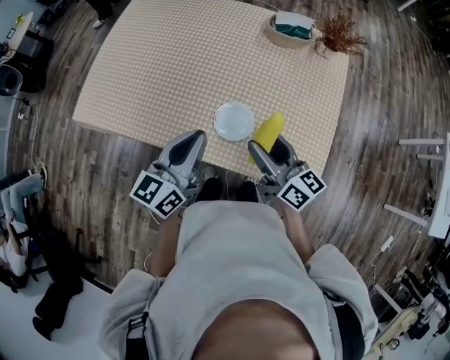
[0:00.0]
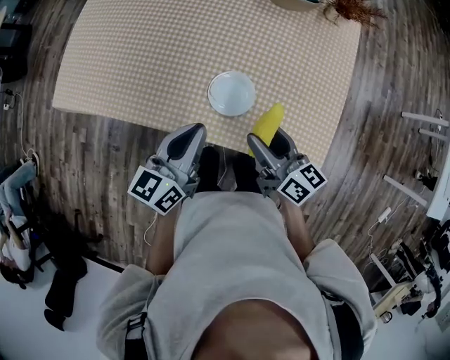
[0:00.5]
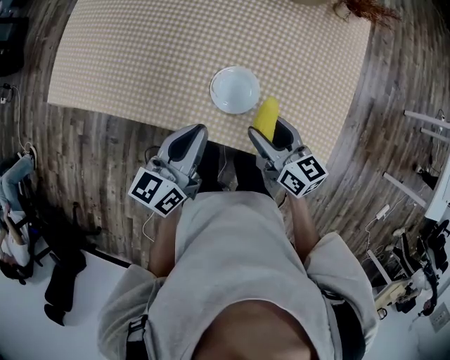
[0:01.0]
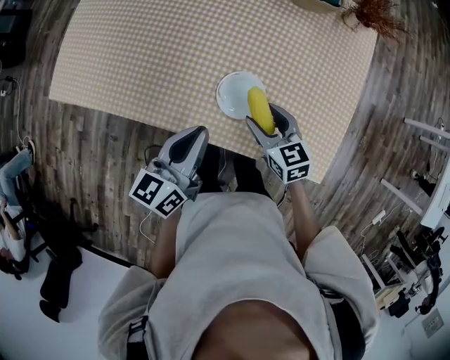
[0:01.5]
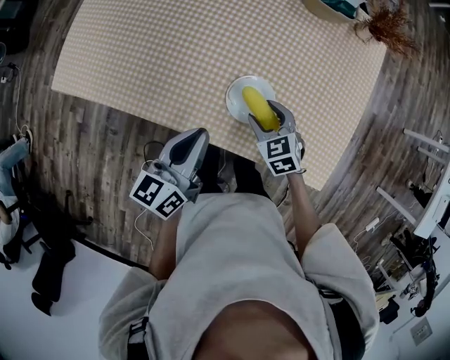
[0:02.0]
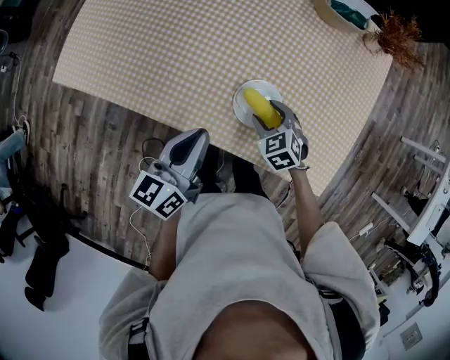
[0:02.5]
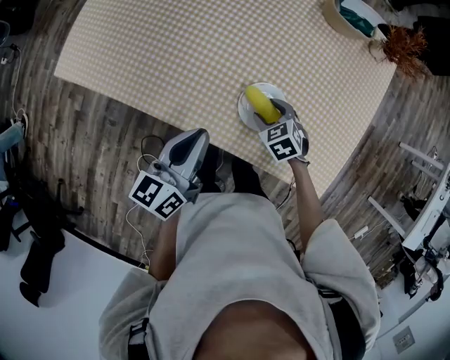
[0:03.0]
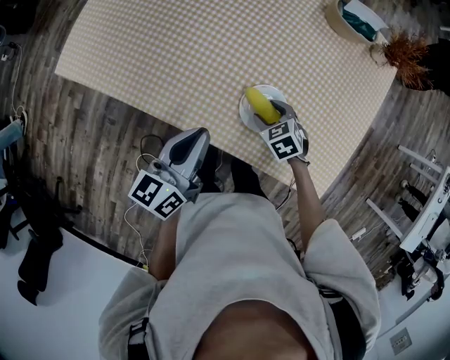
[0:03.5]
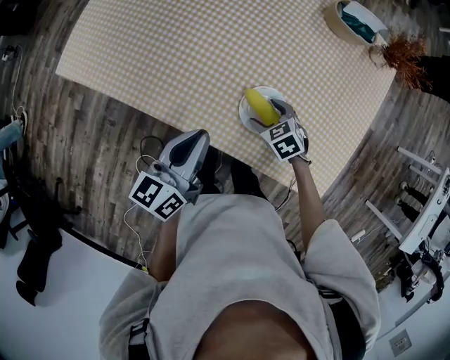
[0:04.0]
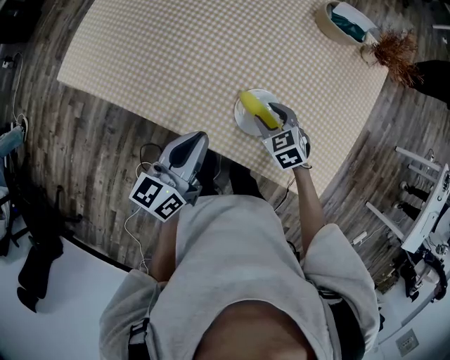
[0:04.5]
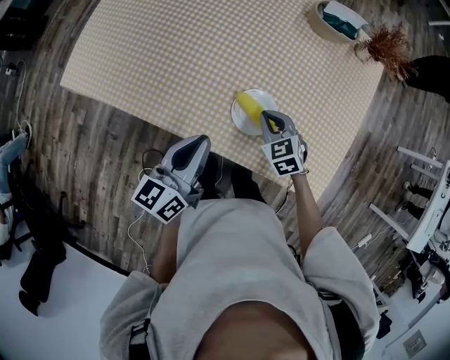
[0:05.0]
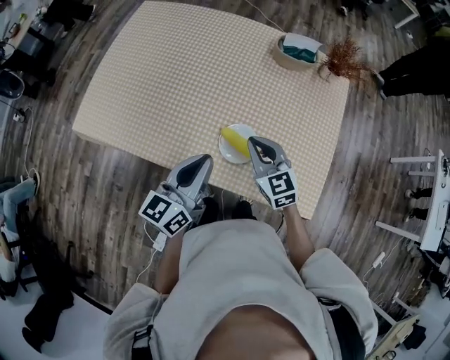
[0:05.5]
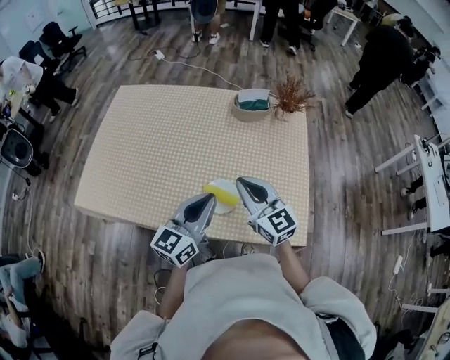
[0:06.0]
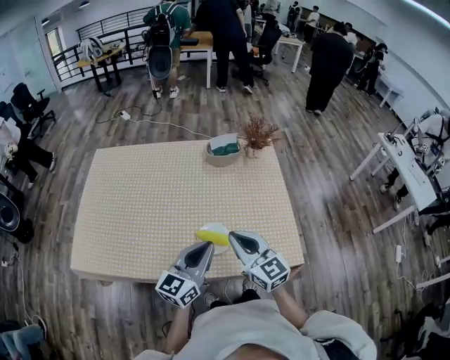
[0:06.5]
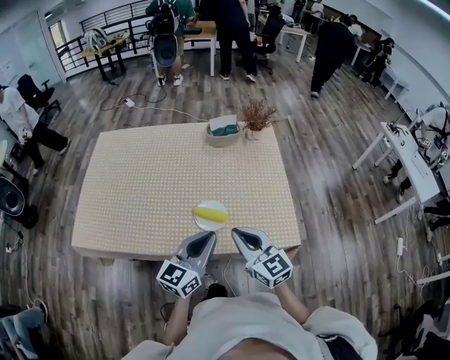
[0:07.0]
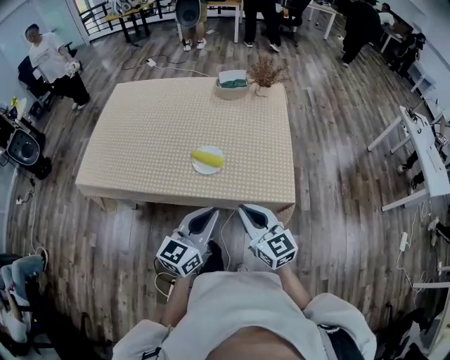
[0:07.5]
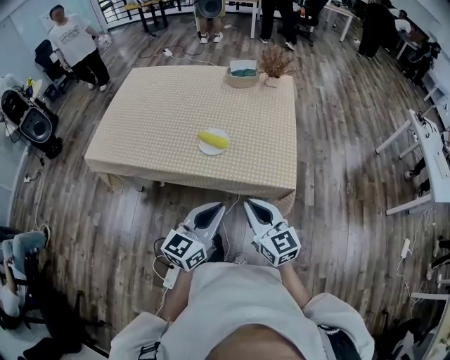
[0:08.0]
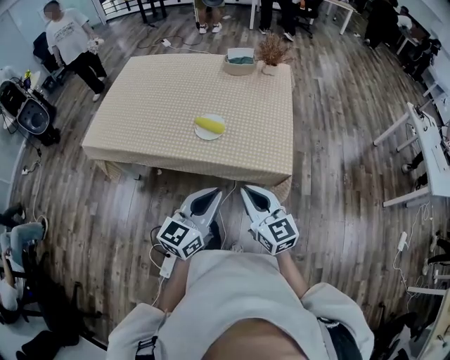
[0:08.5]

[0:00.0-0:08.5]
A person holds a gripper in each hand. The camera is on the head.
0:00.0 to 0:02.0: The left gripper shifts roughly 10 cm downward. Meanwhile the right gripper travels downward by approximately 20 cm, and tips its fingers downward by roughly 50 degrees.
0:02.0 to 0:04.0: The right gripper goes approximately 5 cm downward.
0:04.0 to 0:06.5: The left gripper shifts some 10 cm upward, and changes its angle by about 40 degrees. The right gripper travels upward by approximately 35 cm, tilts its fingers about 60 degrees upward, and closes up.
0:06.5 to 0:08.5: Both grippers move backward and to the right, roughly 30 cm.

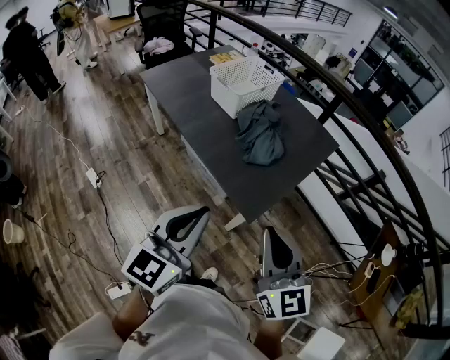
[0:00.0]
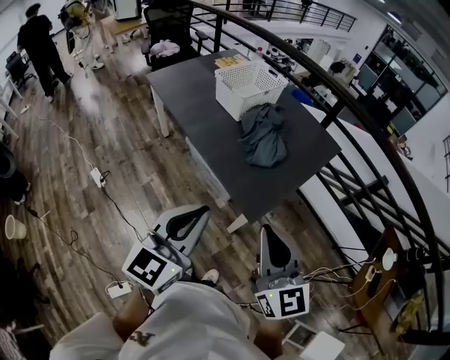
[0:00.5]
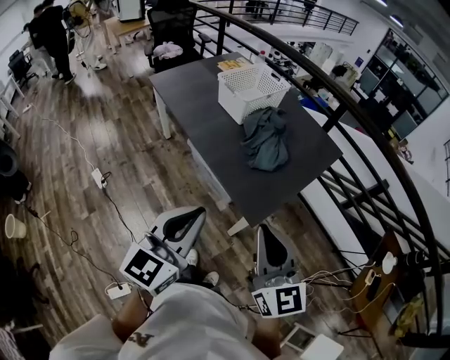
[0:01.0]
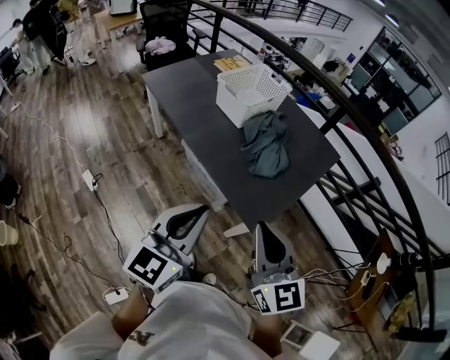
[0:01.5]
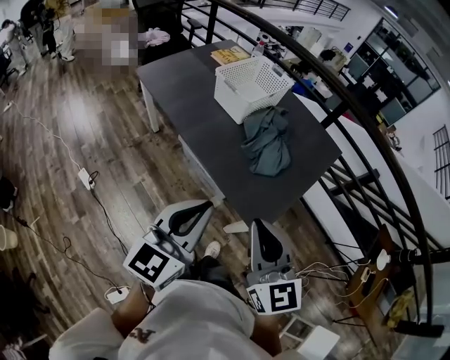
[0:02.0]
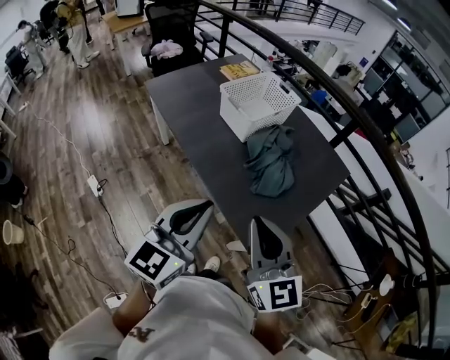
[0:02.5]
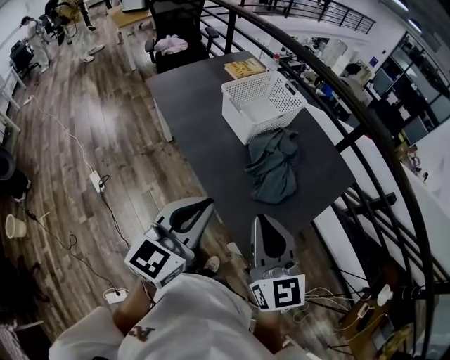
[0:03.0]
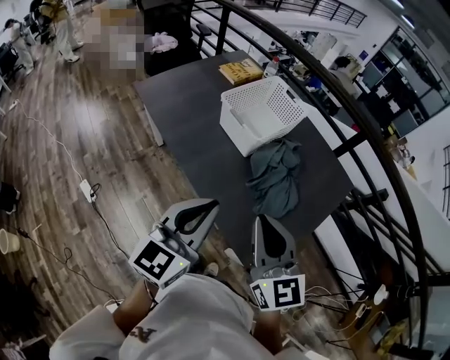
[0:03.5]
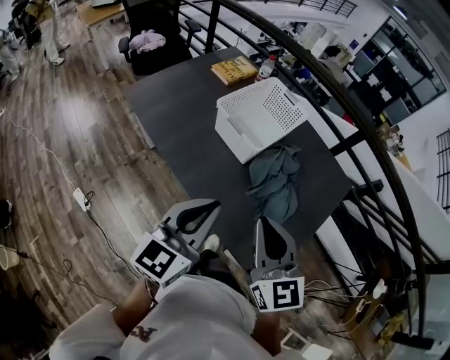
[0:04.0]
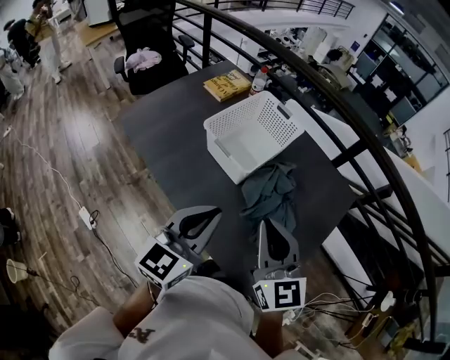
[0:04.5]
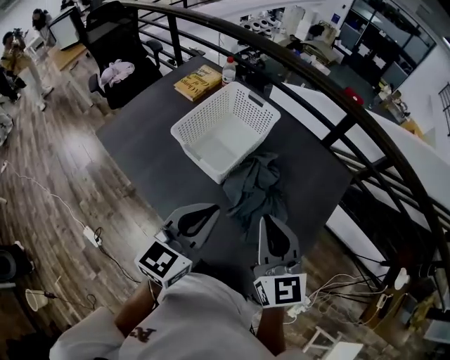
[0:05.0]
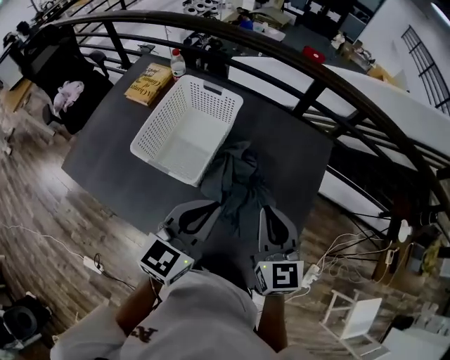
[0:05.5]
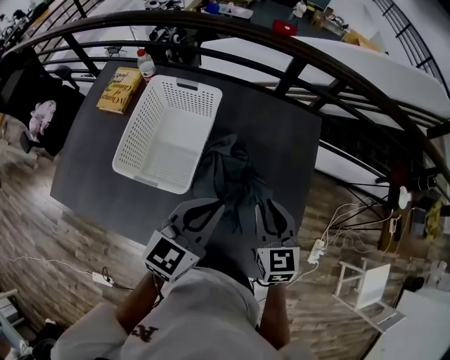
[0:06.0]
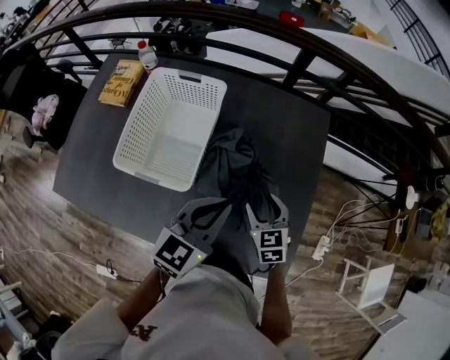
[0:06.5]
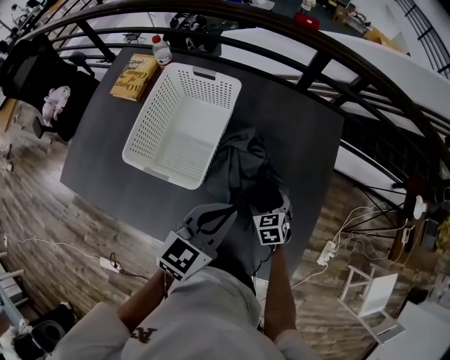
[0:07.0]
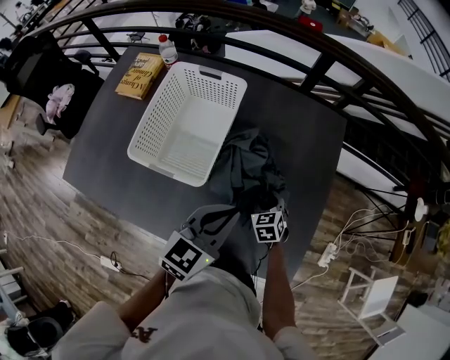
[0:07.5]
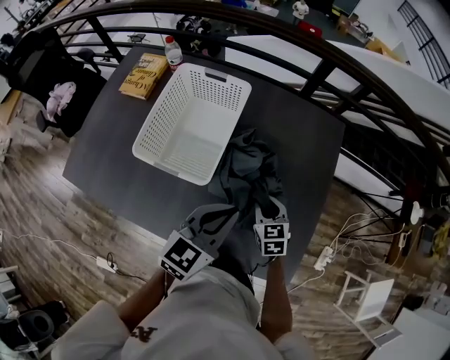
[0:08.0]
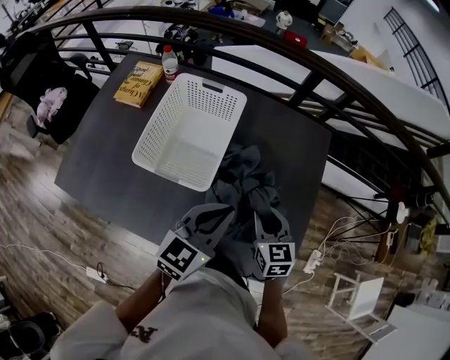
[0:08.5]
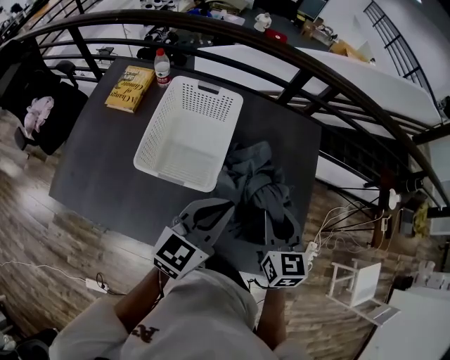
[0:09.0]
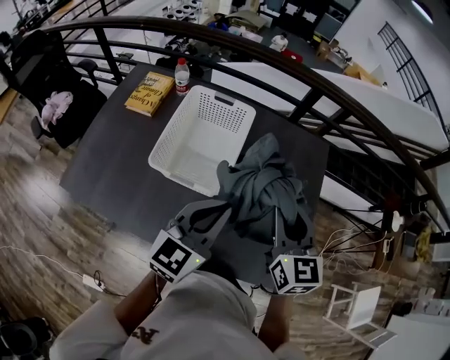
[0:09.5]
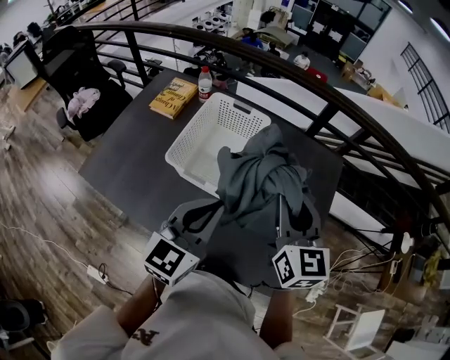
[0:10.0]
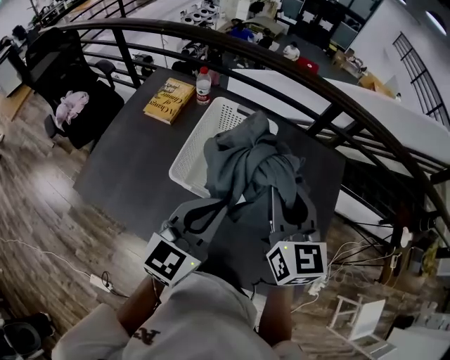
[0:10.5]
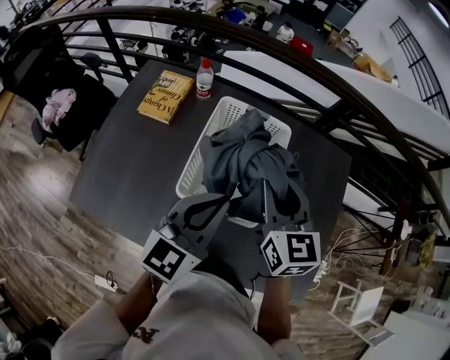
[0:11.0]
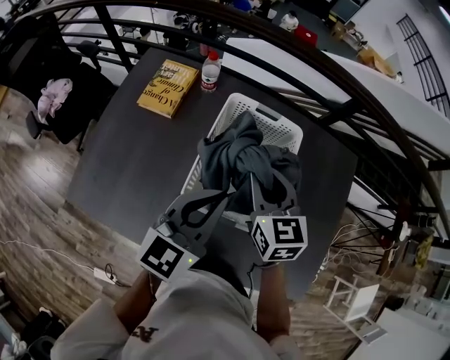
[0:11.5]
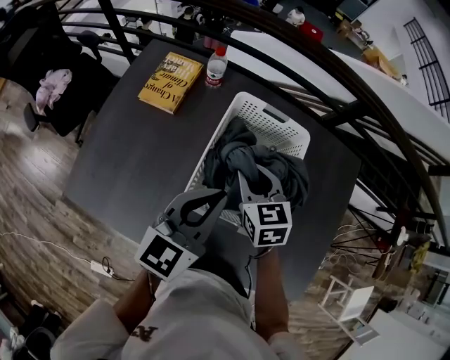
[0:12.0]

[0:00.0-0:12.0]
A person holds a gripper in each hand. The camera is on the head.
0:00.0 to 0:02.0: The right gripper goes about 15 cm to the left and forward, while the left gripper moves forward and to the left, approximately 10 cm.
0:02.0 to 0:04.0: Both grippers travel together forward, approximately 25 cm.
0:04.0 to 0:06.0: The right gripper changes place by some 30 cm, and changes its angle by about 40 degrees, while the left gripper shifts by some 25 cm, and changes its angle by some 40 degrees.
0:06.0 to 0:08.0: The right gripper shifts about 15 cm downward, and opens, then closes once more. The left gripper moves approximately 5 cm.
0:08.0 to 0:10.0: The left gripper heads upward and to the left, covering roughly 15 cm. Meanwhile the right gripper goes some 30 cm upward, and tilts its fingers about 30 degrees upward.
0:10.0 to 0:12.0: The left gripper moves to the left and forward, some 20 cm. Meanwhile the right gripper moves to the left, downward and forward, approximately 35 cm, and swivels approximately 30 degrees.

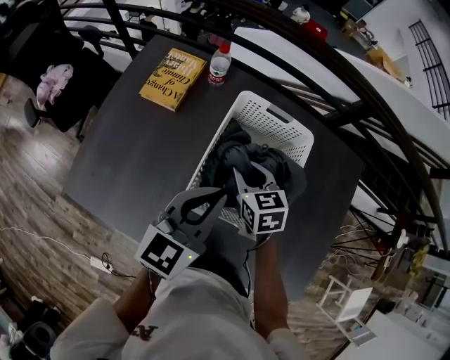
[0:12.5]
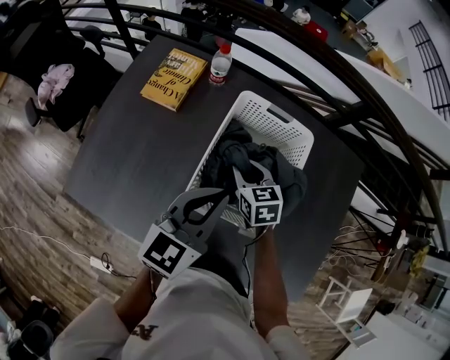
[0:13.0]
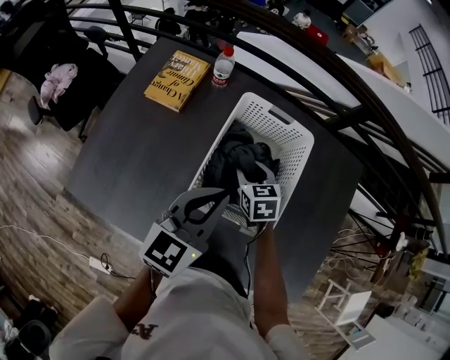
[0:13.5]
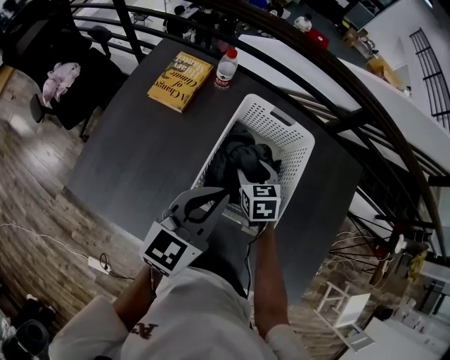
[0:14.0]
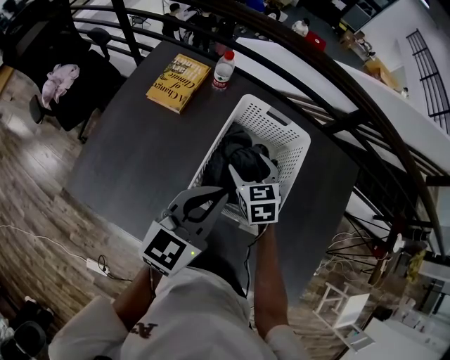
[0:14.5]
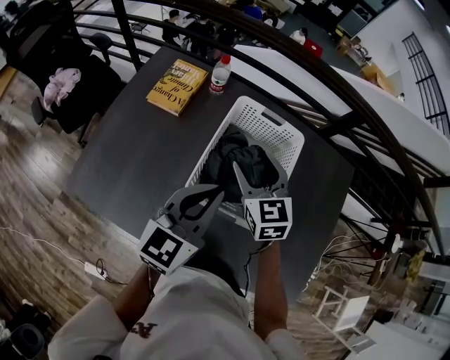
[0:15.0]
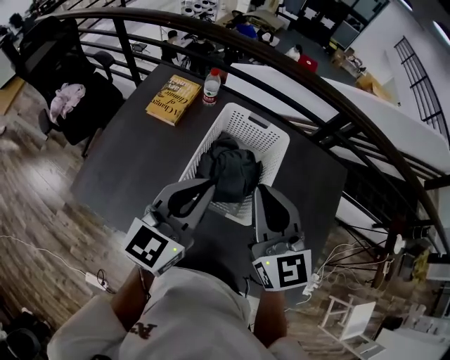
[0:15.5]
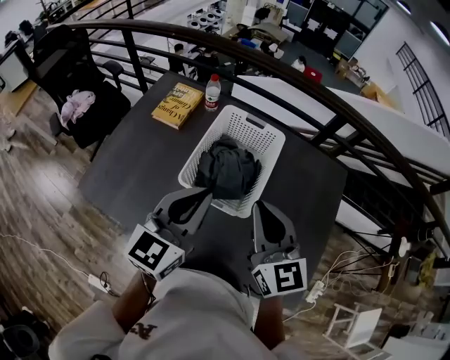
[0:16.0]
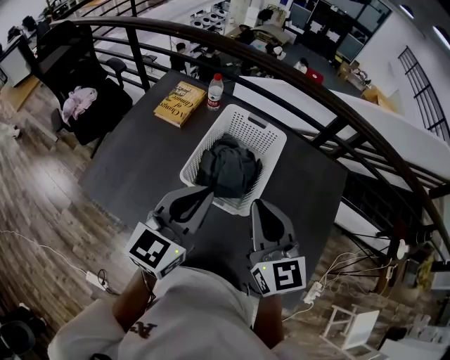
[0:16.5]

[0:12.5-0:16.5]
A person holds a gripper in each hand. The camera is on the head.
0:12.5 to 0:14.5: The right gripper opens up.
0:14.5 to 0:16.5: The left gripper moves backward and upward, roughly 10 cm. The right gripper goes some 30 cm upward and backward, tips its fingers upward by roughly 40 degrees, and closes up.
